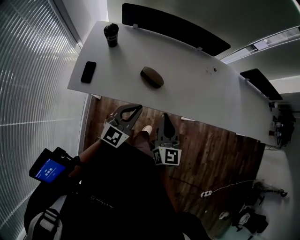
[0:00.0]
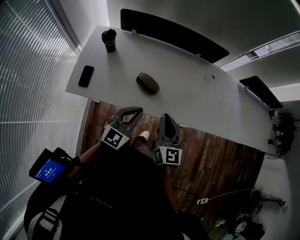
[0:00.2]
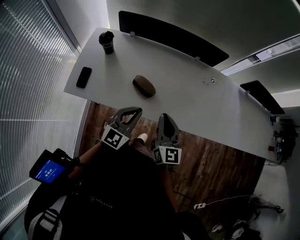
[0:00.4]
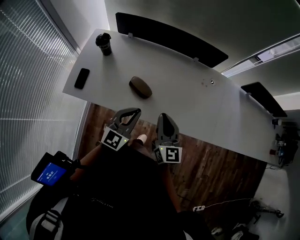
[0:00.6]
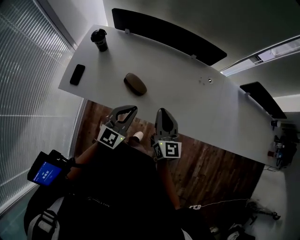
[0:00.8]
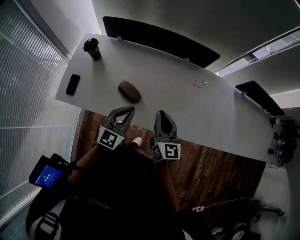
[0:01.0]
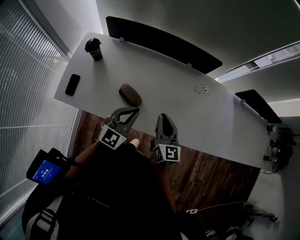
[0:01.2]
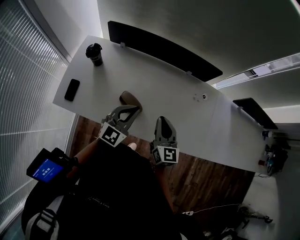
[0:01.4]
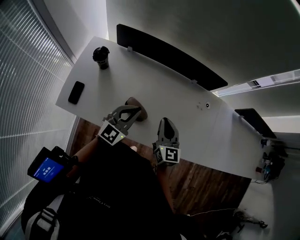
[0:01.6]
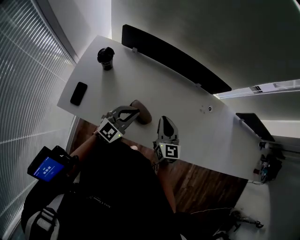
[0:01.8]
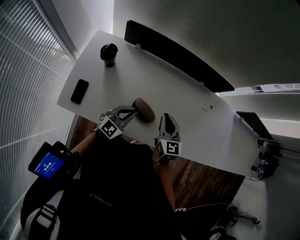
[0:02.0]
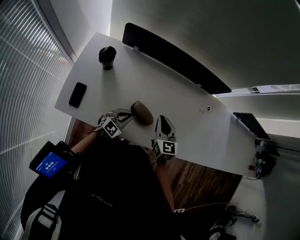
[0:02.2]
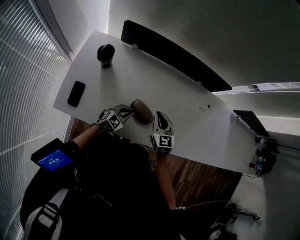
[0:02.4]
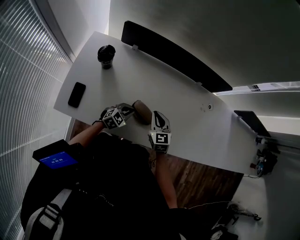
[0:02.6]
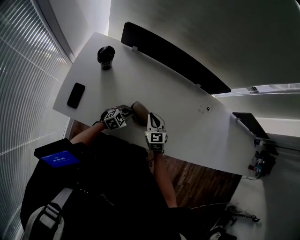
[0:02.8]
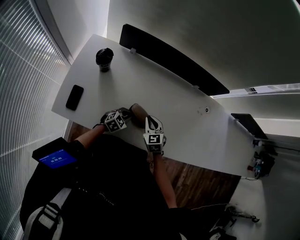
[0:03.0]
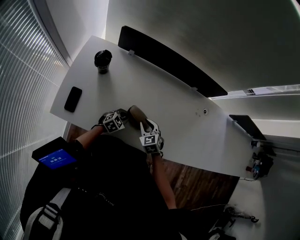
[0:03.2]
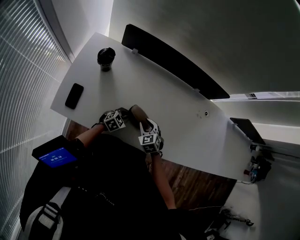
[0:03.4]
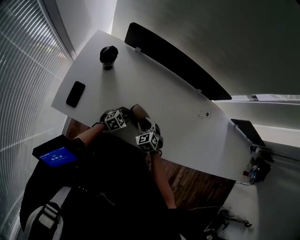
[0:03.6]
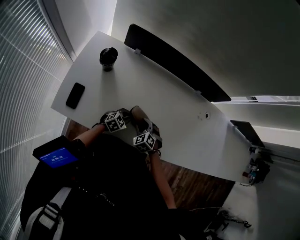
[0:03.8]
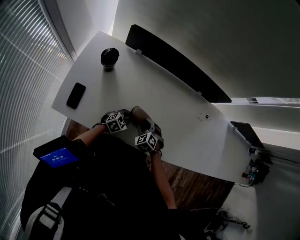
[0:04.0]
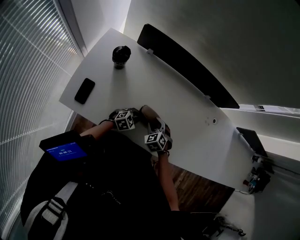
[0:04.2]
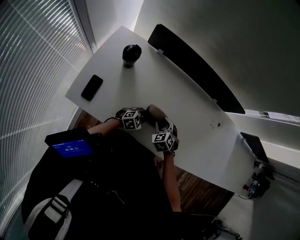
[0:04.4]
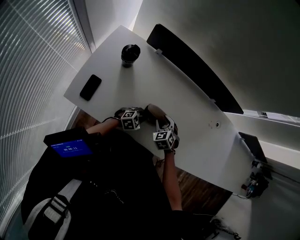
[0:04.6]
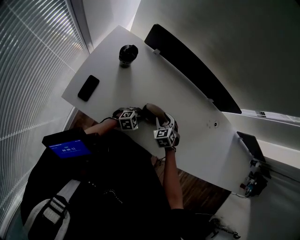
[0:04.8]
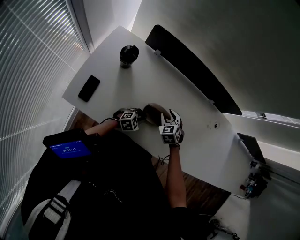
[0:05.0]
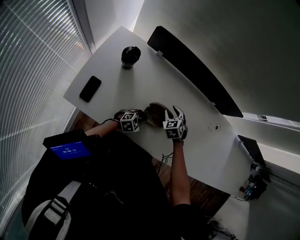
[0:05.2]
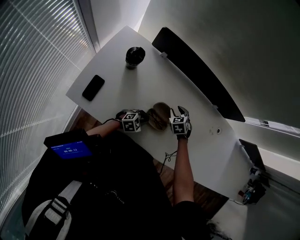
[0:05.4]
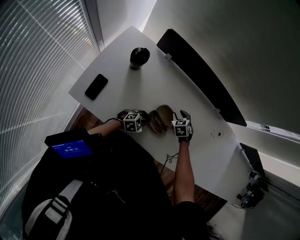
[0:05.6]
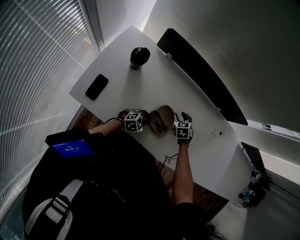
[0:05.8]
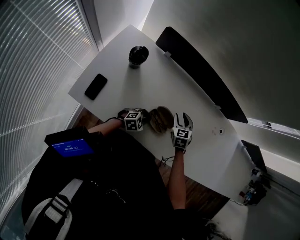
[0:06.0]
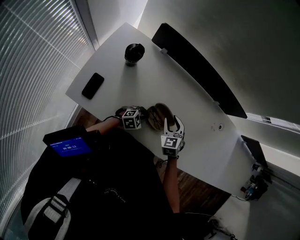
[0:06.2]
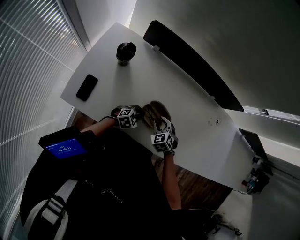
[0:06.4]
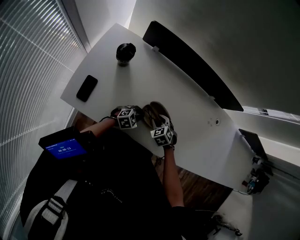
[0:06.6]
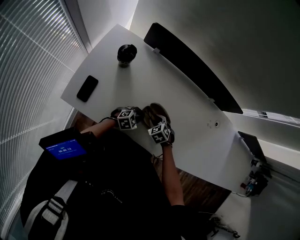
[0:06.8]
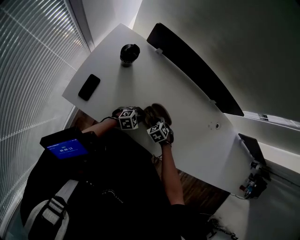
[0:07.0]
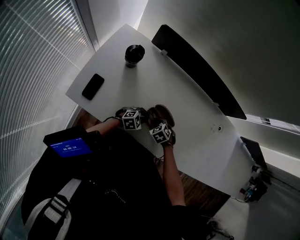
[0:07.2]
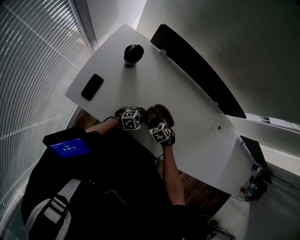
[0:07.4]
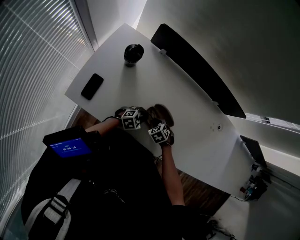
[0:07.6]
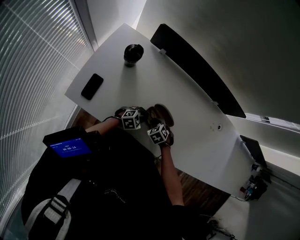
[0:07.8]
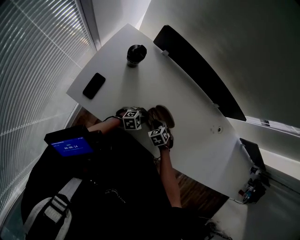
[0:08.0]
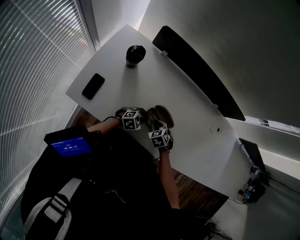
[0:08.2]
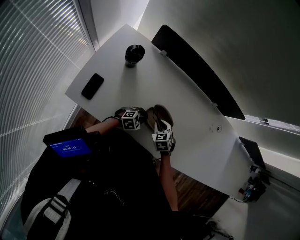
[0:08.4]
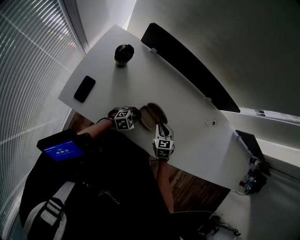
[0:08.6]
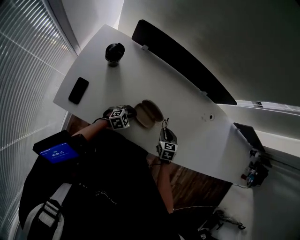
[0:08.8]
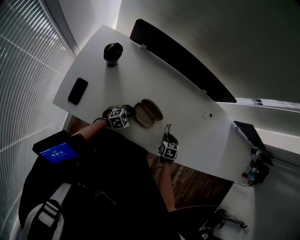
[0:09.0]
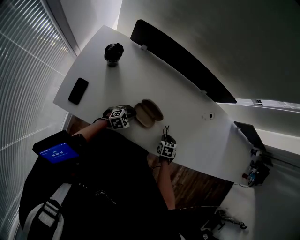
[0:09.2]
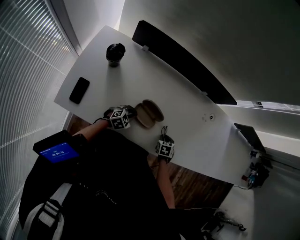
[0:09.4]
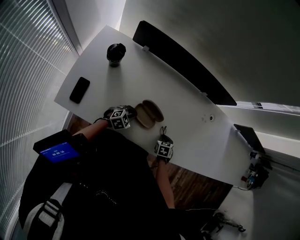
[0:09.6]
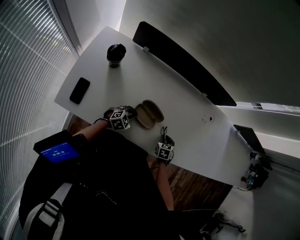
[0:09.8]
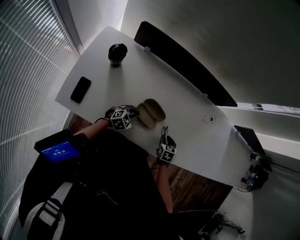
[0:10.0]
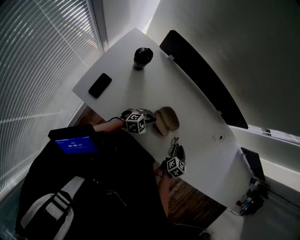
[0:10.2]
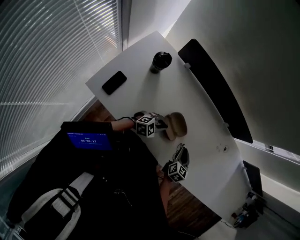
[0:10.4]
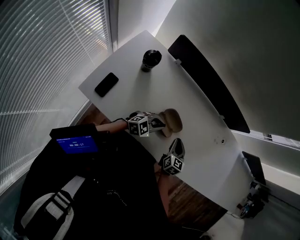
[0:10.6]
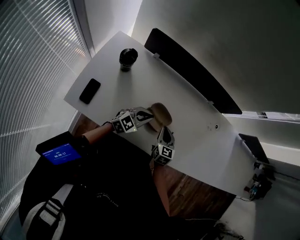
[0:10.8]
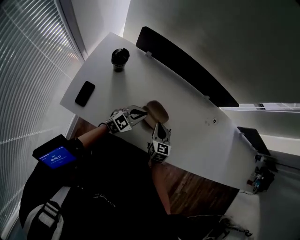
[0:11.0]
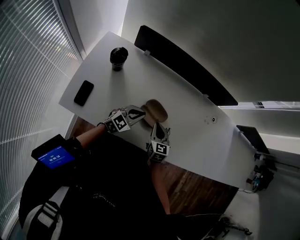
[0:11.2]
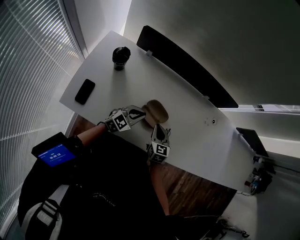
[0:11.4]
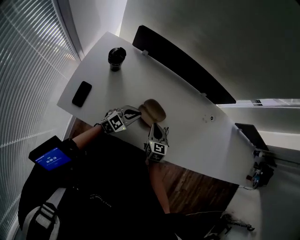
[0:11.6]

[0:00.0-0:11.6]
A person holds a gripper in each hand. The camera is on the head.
0:00.0 to 0:01.4: Both grippers move forward, some 20 cm.
0:01.4 to 0:02.8: The right gripper heads downward and to the left, covering about 25 cm, and rotates about 30 degrees. The left gripper goes approximately 30 cm downward, and rotates roughly 40 degrees.
0:02.8 to 0:04.4: The right gripper goes approximately 5 cm downward, changes its angle by some 30 degrees, and opens its fingers.
0:04.4 to 0:05.8: The right gripper travels forward by roughly 10 cm.
0:05.8 to 0:07.2: The right gripper is displaced backward by some 15 cm, and swivels some 30 degrees.
0:07.2 to 0:08.8: The right gripper moves to the right and upward, some 15 cm, and swivels approximately 50 degrees.
0:08.8 to 0:10.2: The right gripper reaches some 10 cm downward, then returns, and changes its angle by some 30 degrees.
0:10.2 to 0:11.6: The right gripper moves to the left, roughly 15 cm, and closes its fingers. Meanwhile the left gripper is displaced upward by about 10 cm.

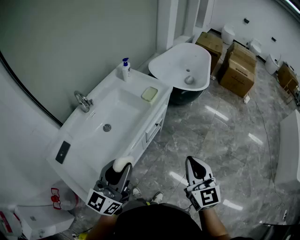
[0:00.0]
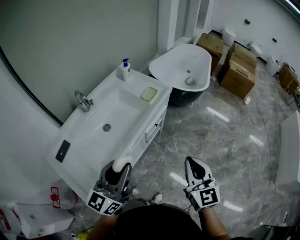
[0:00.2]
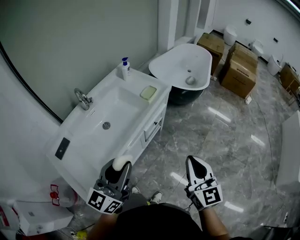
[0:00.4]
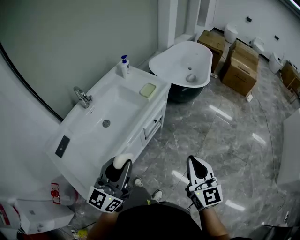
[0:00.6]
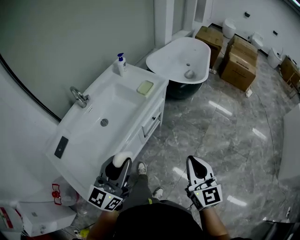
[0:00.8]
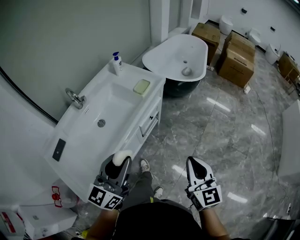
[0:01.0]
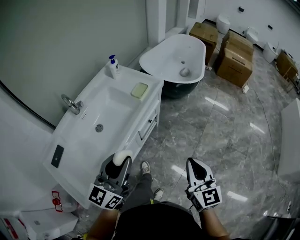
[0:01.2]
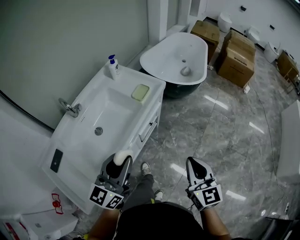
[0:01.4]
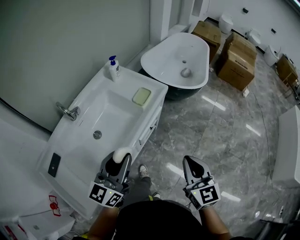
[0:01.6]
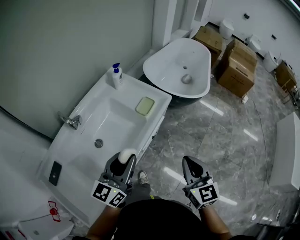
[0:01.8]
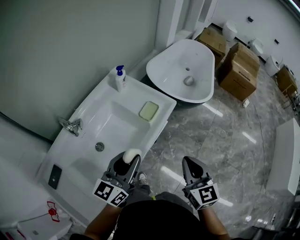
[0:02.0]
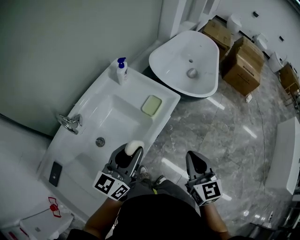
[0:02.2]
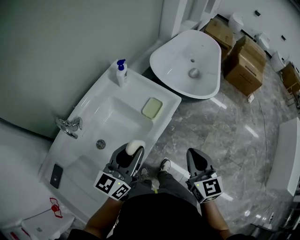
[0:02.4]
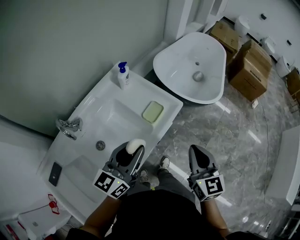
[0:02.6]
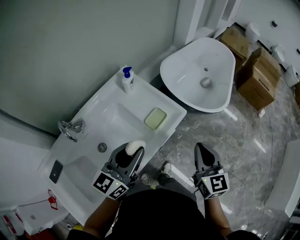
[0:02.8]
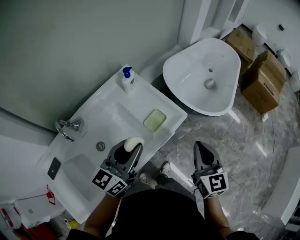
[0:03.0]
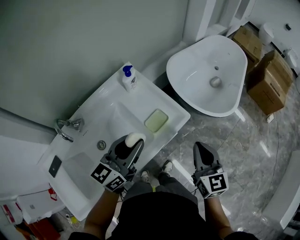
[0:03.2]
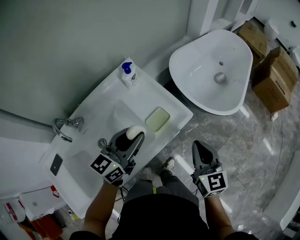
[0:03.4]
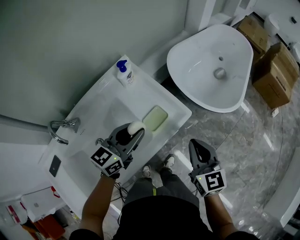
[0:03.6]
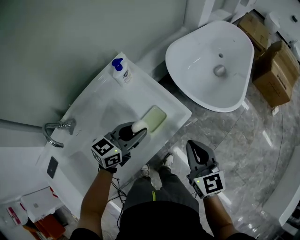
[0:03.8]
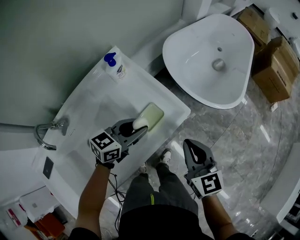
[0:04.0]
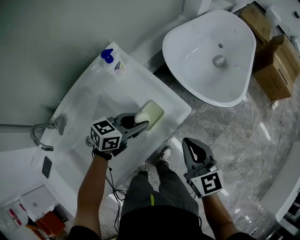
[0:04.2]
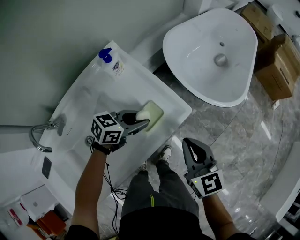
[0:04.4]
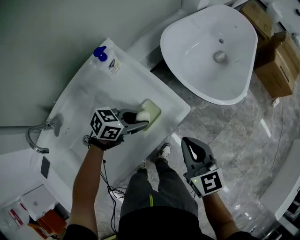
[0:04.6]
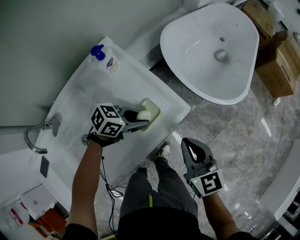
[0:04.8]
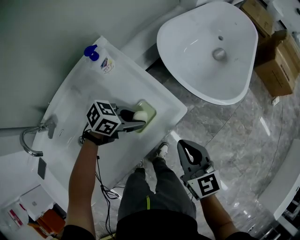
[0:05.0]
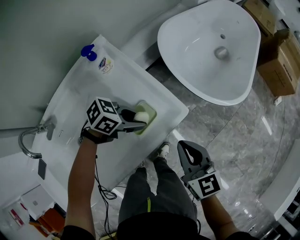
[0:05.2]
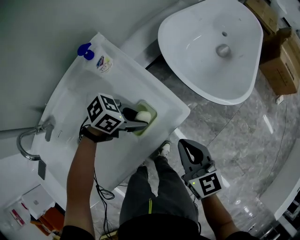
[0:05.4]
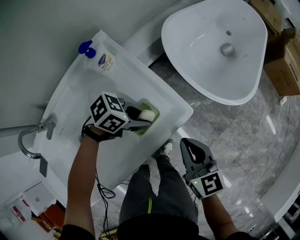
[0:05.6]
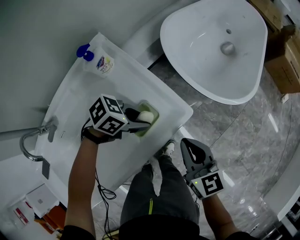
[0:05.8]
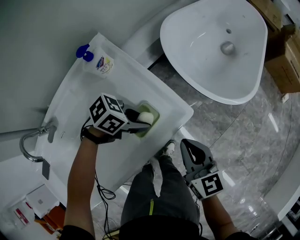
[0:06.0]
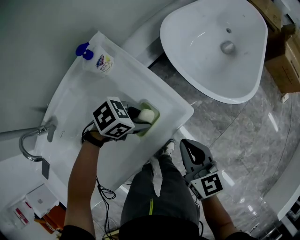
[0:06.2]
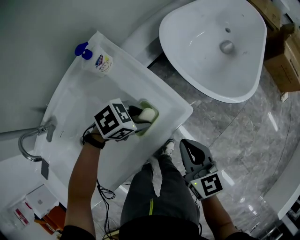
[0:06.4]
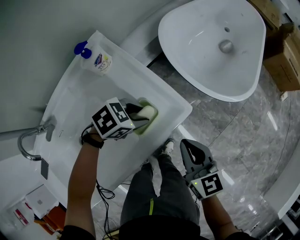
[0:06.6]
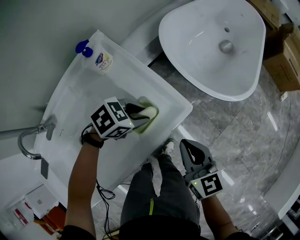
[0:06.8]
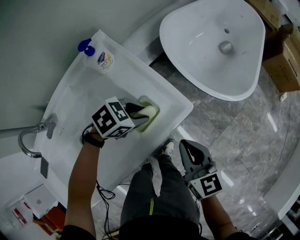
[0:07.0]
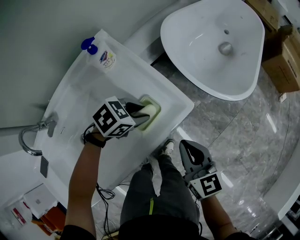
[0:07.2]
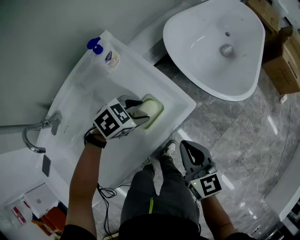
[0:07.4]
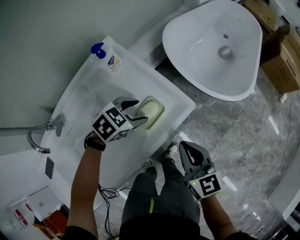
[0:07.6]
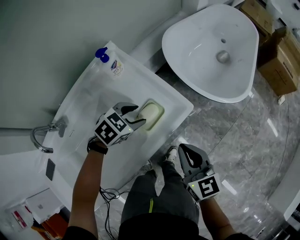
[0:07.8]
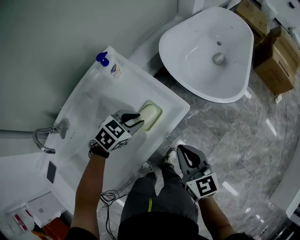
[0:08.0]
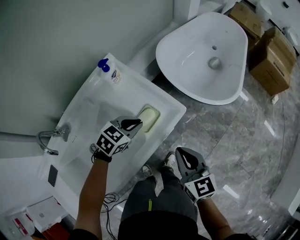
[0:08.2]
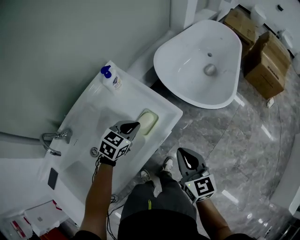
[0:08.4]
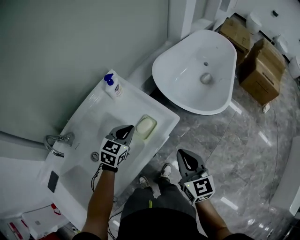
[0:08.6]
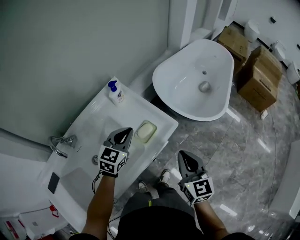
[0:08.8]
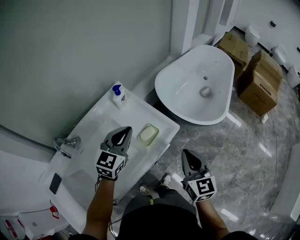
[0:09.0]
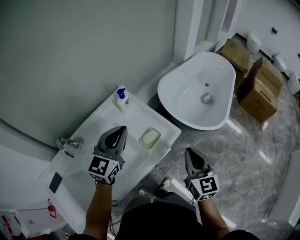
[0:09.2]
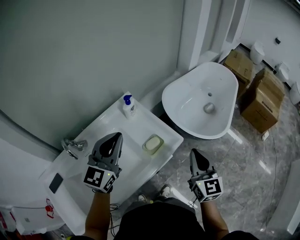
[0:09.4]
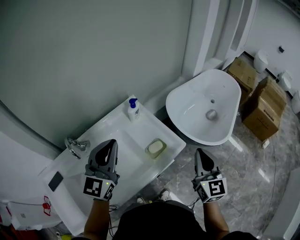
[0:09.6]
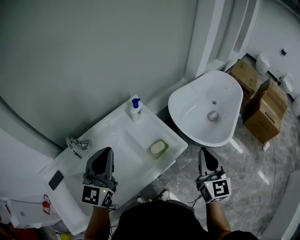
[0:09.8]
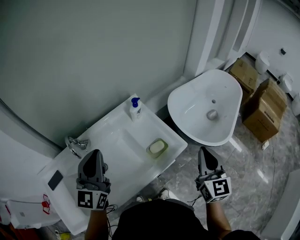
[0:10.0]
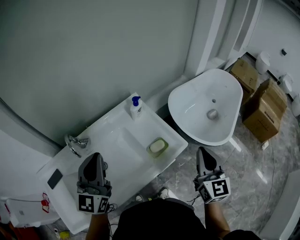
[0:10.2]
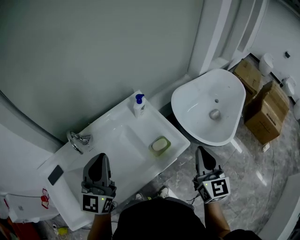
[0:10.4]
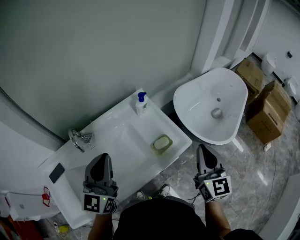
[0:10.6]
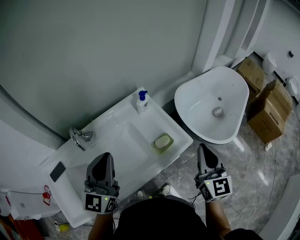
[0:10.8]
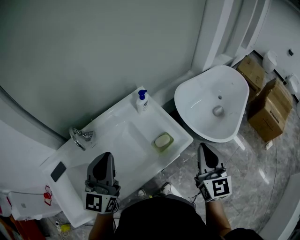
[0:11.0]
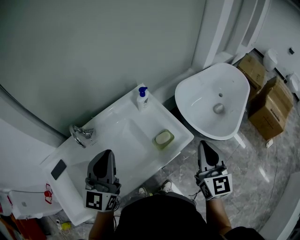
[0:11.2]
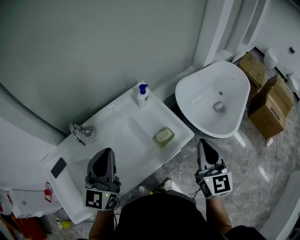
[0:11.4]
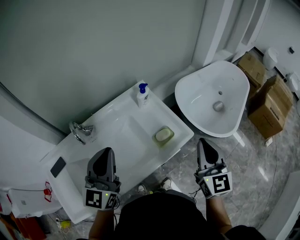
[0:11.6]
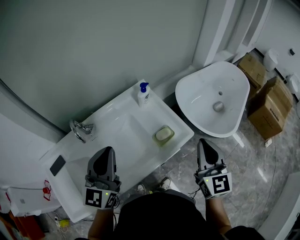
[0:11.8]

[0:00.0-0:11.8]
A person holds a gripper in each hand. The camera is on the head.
0:00.0 to 0:01.4: The right gripper is displaced forward by some 5 cm. Meanwhile the left gripper shifts about 10 cm forward.
0:01.4 to 0:03.0: The two grippers go some 30 cm forward.
0:03.0 to 0:04.4: The left gripper heads downward and forward, covering approximately 25 cm, and turns by about 50 degrees. The right gripper shifts approximately 15 cm downward and forward.
0:04.4 to 0:06.0: The two grippers go roughly 5 cm downward. The left gripper changes its angle by approximately 30 degrees.
0:06.0 to 0:07.4: The left gripper rotates roughly 30 degrees, and opens.
0:07.4 to 0:08.8: The two grippers go roughly 15 cm upward. The left gripper points its fingers some 30 degrees further upward, and closes up.
0:08.8 to 0:10.4: The left gripper is displaced upward, to the left and backward by approximately 30 cm, and tilts its fingers approximately 30 degrees upward. The right gripper is displaced upward and forward by some 15 cm.
0:10.4 to 0:11.8: The grippers stay close to where they were, moving slightly.
